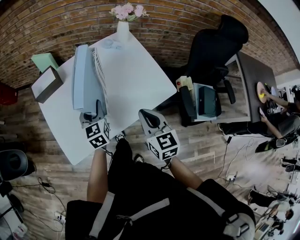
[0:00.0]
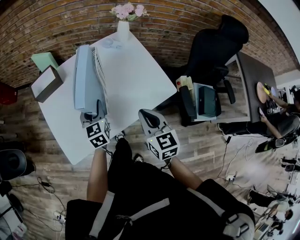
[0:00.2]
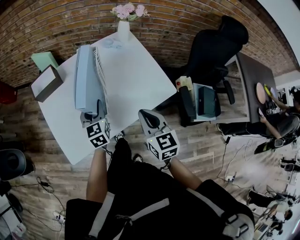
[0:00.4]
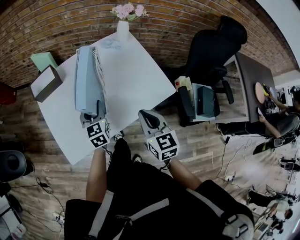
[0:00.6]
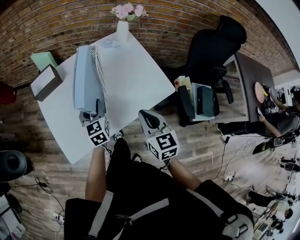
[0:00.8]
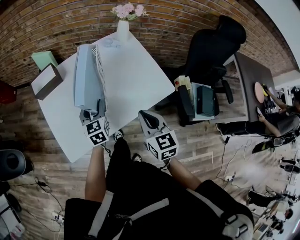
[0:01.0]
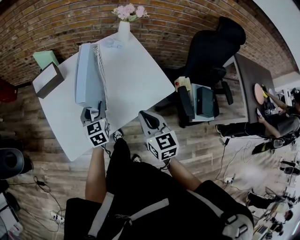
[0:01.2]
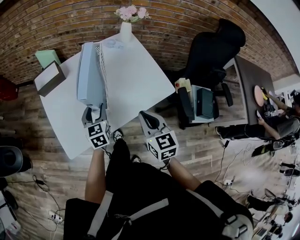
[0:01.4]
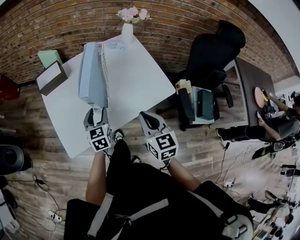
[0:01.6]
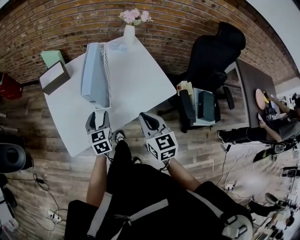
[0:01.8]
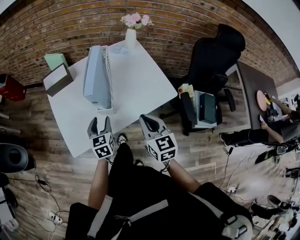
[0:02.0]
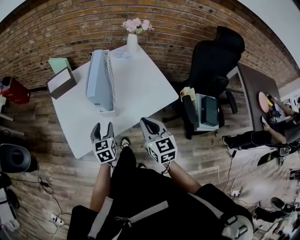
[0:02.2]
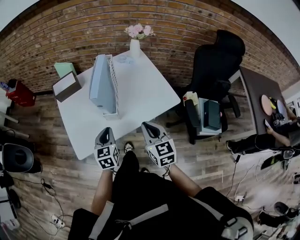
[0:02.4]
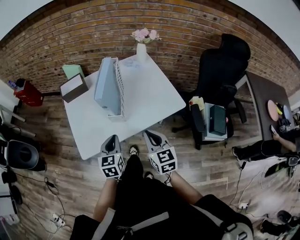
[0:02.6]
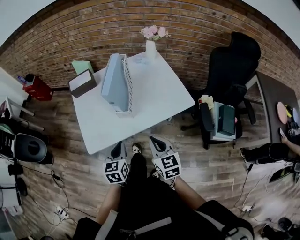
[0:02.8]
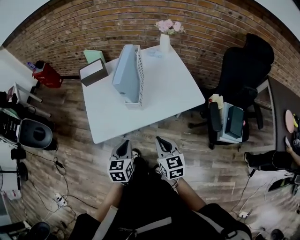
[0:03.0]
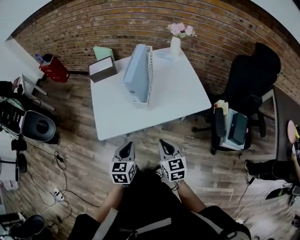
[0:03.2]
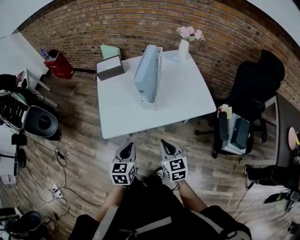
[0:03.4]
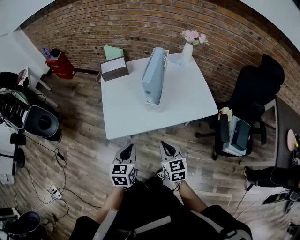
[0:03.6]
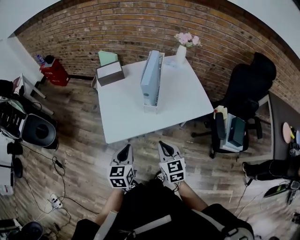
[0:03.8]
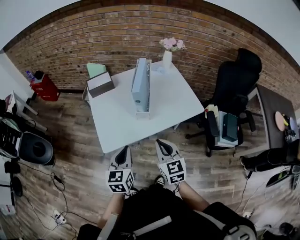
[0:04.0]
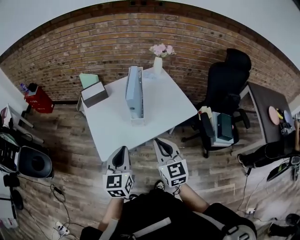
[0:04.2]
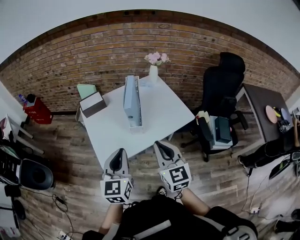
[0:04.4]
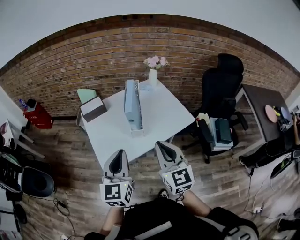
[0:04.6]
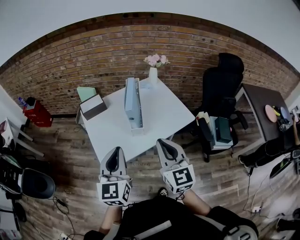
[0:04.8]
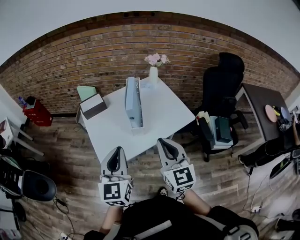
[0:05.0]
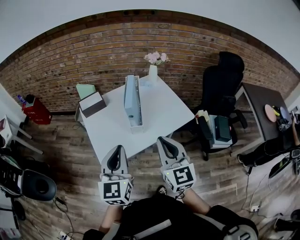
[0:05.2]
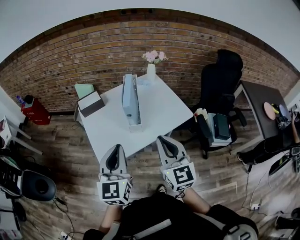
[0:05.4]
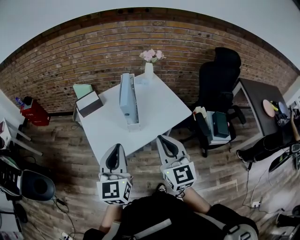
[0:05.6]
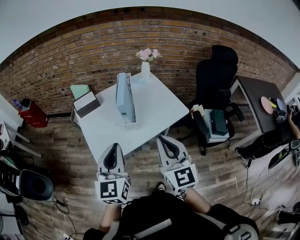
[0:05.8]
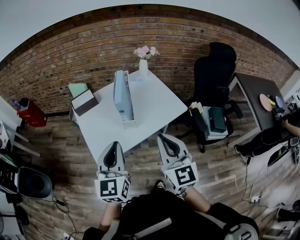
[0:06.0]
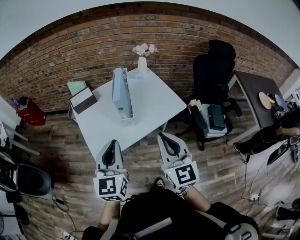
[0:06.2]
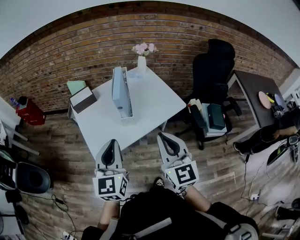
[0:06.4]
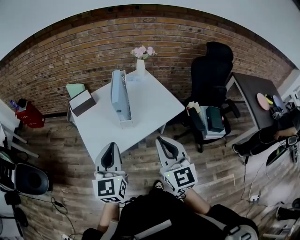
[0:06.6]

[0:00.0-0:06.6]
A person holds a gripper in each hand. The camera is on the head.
0:00.0 to 0:01.6: The left gripper travels backward by roughly 5 cm.
0:01.6 to 0:03.2: The left gripper moves backward, about 25 cm, and closes up. The right gripper heads backward, downward and to the left, covering approximately 15 cm.
0:03.2 to 0:05.0: The two grippers go about 25 cm upward. The left gripper swivels about 30 degrees. Meanwhile the right gripper turns by some 30 degrees.
0:05.0 to 0:06.6: The right gripper ends up roughly 5 cm from where it was.

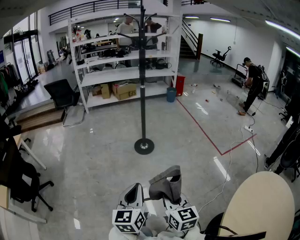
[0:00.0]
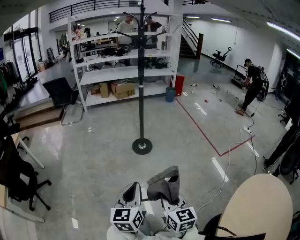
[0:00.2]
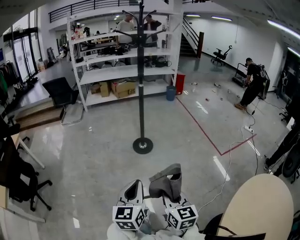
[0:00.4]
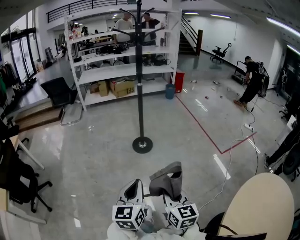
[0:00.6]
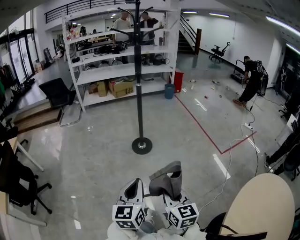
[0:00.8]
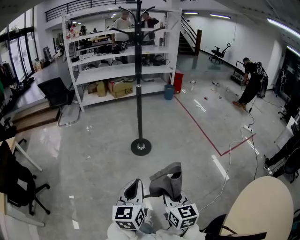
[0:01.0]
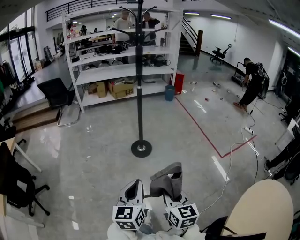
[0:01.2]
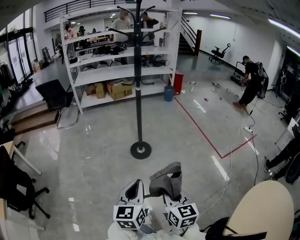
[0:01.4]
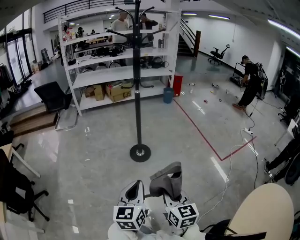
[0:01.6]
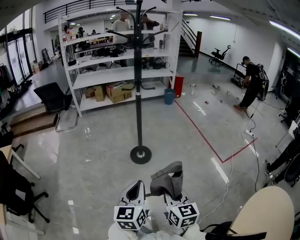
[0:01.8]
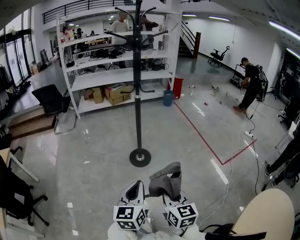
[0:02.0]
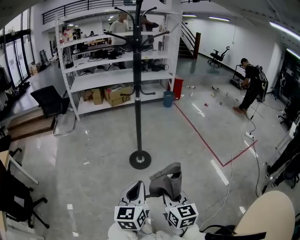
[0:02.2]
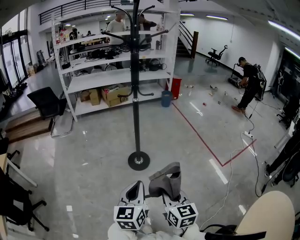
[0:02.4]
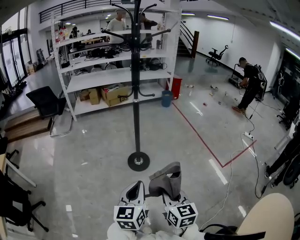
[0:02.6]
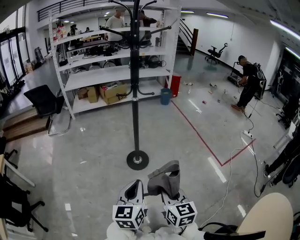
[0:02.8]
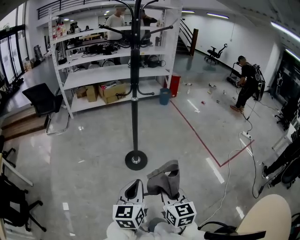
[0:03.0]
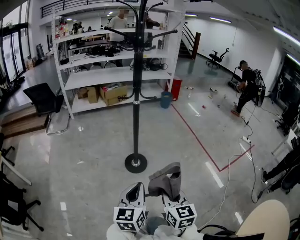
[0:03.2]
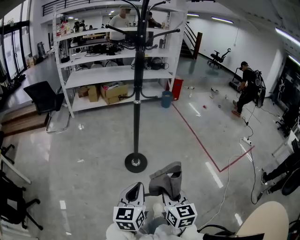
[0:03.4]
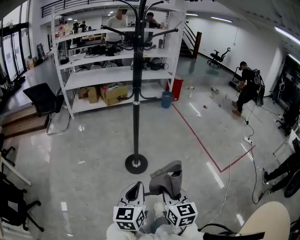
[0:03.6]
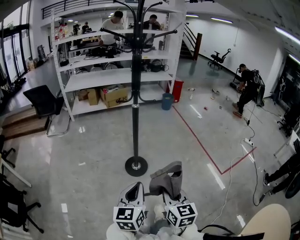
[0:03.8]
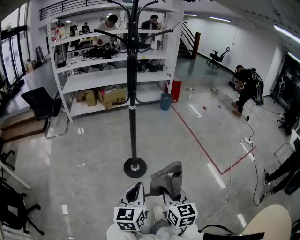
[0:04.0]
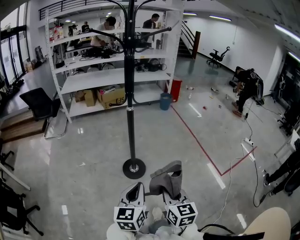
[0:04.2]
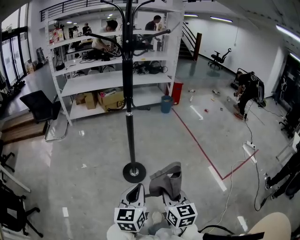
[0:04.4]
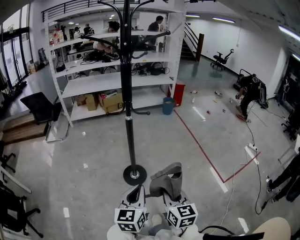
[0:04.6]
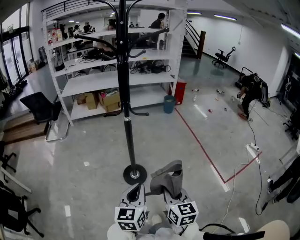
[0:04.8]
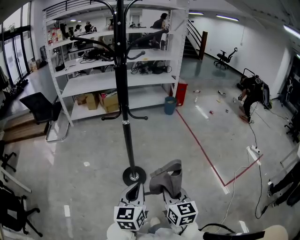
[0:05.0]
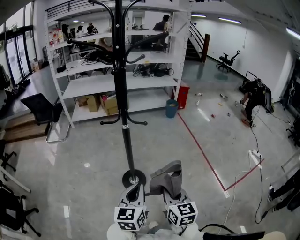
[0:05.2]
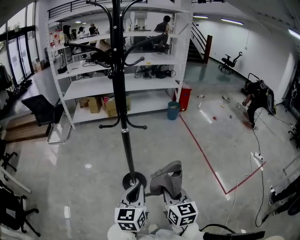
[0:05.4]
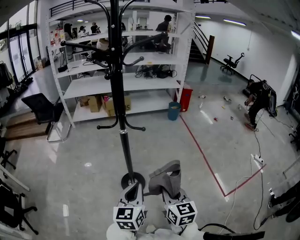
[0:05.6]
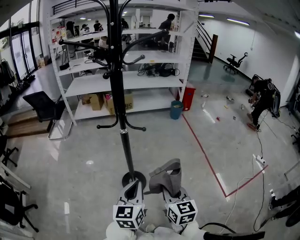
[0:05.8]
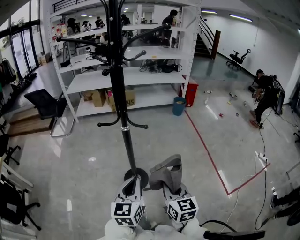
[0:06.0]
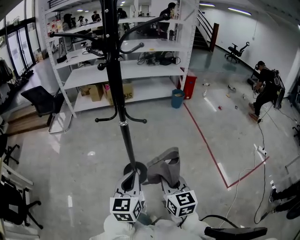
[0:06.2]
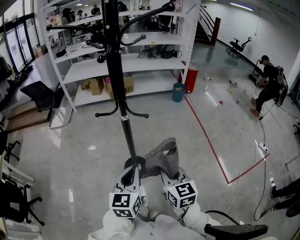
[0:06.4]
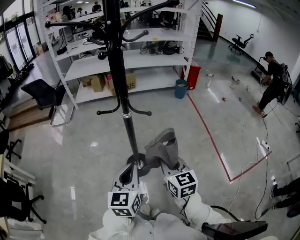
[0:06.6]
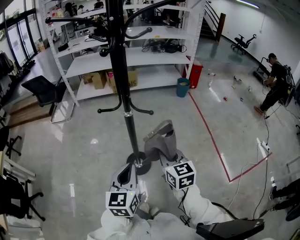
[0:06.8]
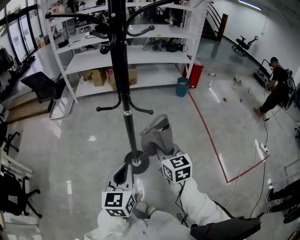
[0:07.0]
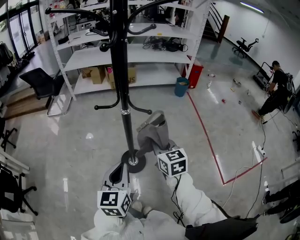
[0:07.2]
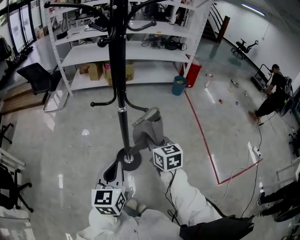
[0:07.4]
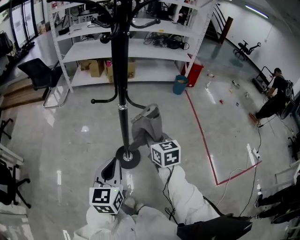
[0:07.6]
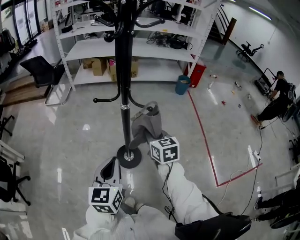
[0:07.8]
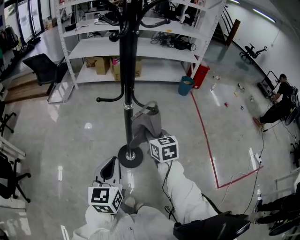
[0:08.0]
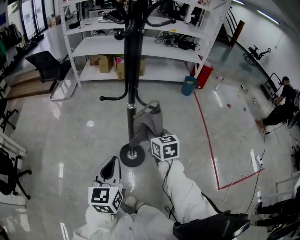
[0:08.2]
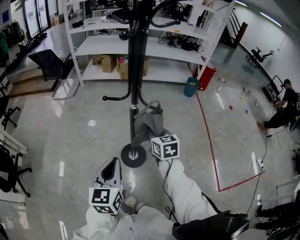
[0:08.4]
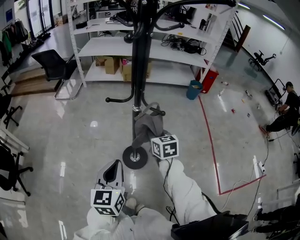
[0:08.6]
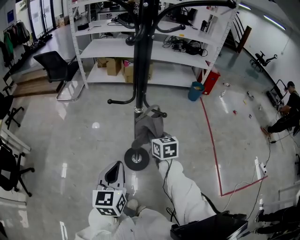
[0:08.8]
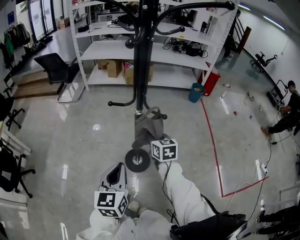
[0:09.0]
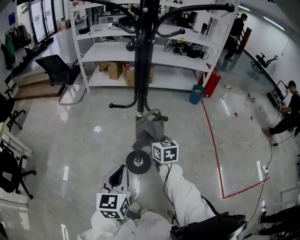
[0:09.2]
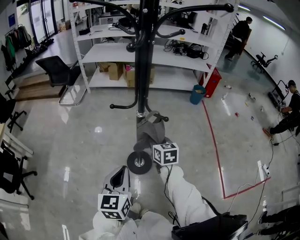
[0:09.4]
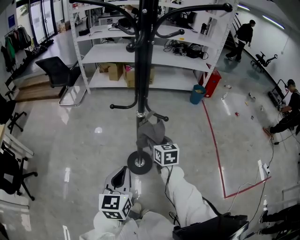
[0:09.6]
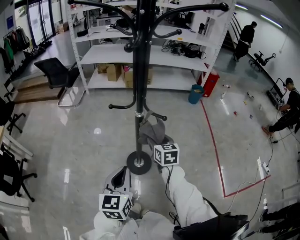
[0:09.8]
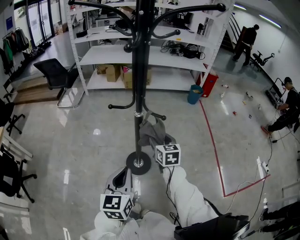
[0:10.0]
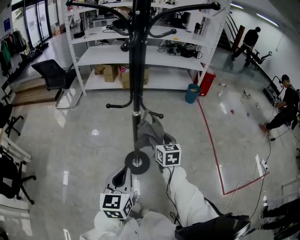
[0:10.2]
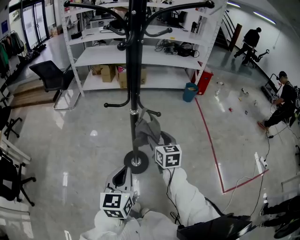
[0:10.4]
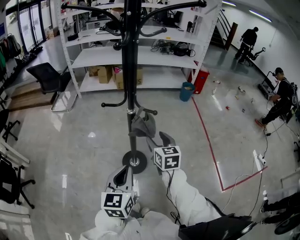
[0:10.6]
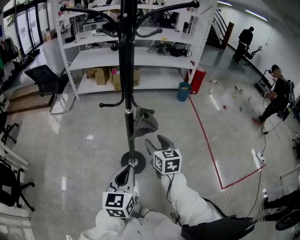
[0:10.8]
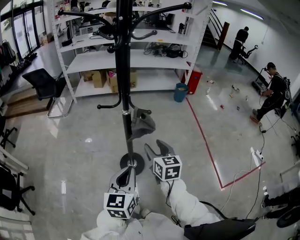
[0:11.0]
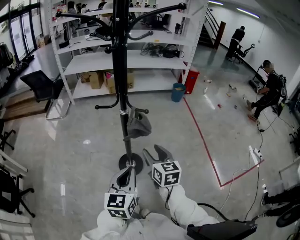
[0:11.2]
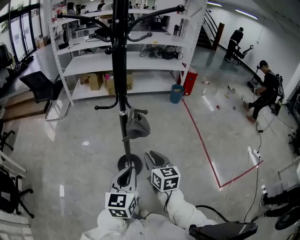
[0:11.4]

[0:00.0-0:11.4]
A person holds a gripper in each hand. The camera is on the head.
0:00.0 to 0:01.4: Both grippers travel together forward, approximately 10 cm.
0:01.4 to 0:02.8: The grippers both shift forward by some 15 cm.
0:02.8 to 0:04.2: Both grippers travel together forward, approximately 10 cm.
0:04.2 to 0:05.6: Both grippers move forward, about 15 cm.
0:05.6 to 0:07.2: The left gripper travels to the left and forward by some 10 cm, while the right gripper shifts approximately 20 cm forward.
0:07.2 to 0:08.6: The right gripper heads forward and downward, covering about 10 cm.
0:08.6 to 0:10.0: The right gripper opens its fingers.
0:10.0 to 0:11.4: The right gripper goes roughly 15 cm backward, and closes, while the left gripper is displaced to the right by some 5 cm.

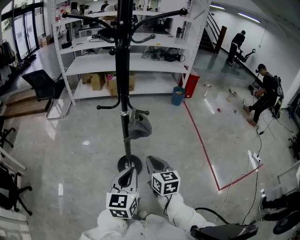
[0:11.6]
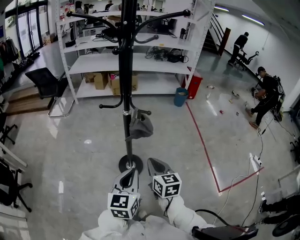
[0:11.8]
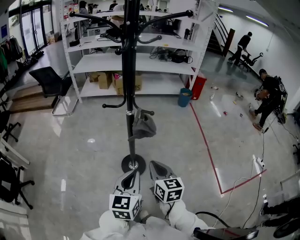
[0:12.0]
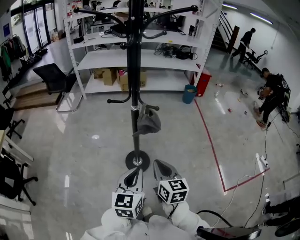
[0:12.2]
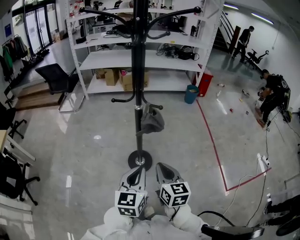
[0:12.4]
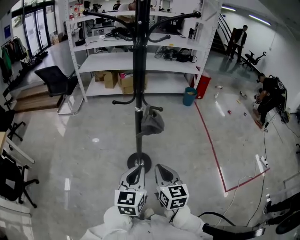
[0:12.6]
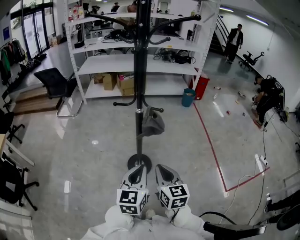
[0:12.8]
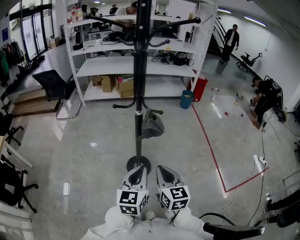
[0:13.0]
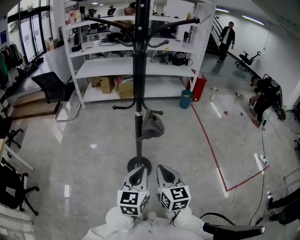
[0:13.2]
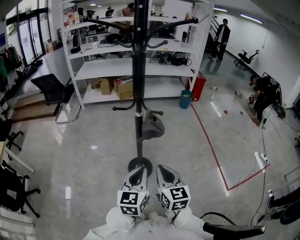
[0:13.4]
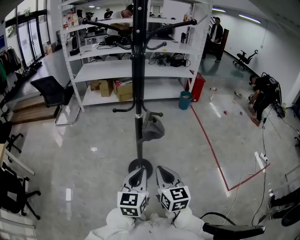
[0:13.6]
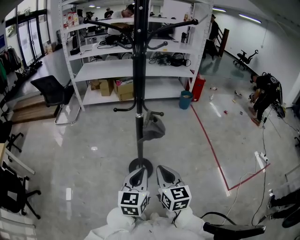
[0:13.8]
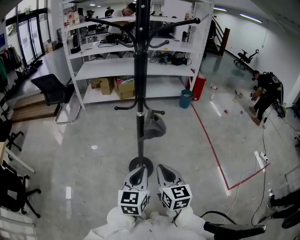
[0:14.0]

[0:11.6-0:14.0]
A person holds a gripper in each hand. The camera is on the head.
0:11.6 to 0:12.8: The right gripper shifts some 5 cm backward.
0:12.8 to 0:14.0: The grippers stay close to where they were, moving slightly.

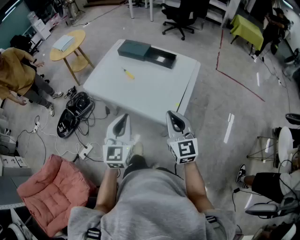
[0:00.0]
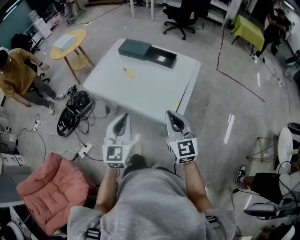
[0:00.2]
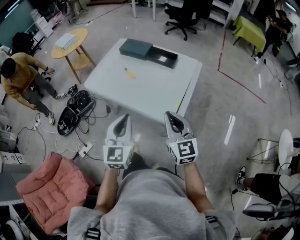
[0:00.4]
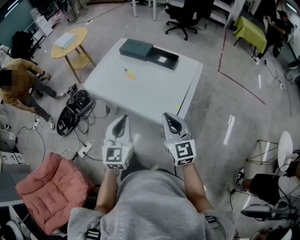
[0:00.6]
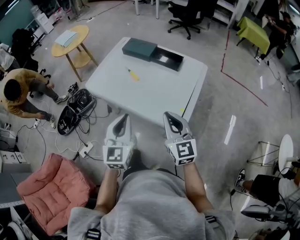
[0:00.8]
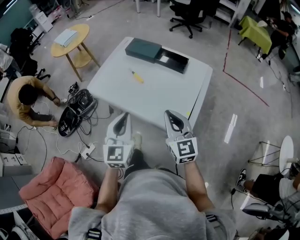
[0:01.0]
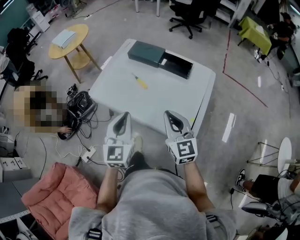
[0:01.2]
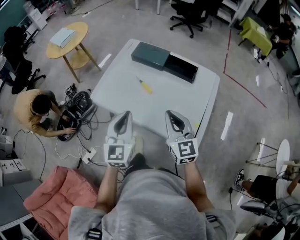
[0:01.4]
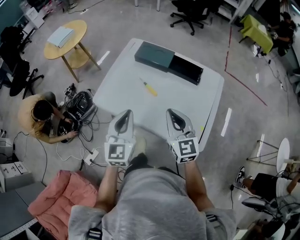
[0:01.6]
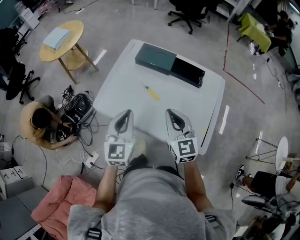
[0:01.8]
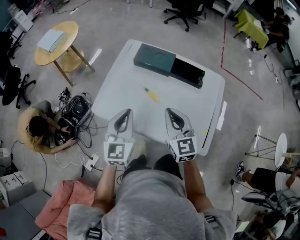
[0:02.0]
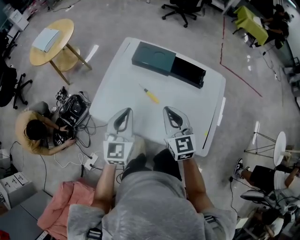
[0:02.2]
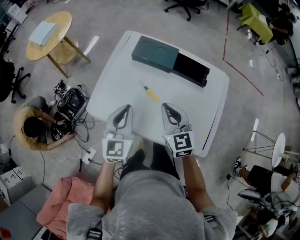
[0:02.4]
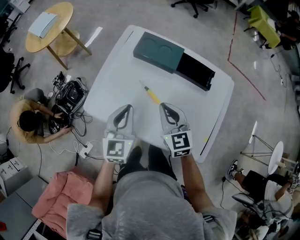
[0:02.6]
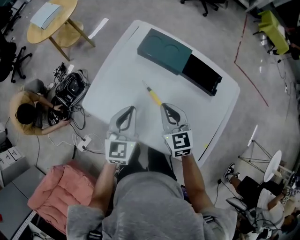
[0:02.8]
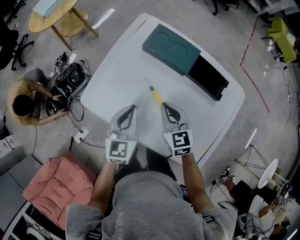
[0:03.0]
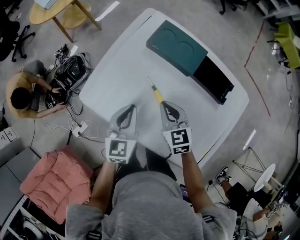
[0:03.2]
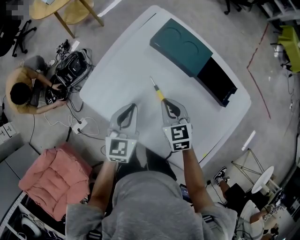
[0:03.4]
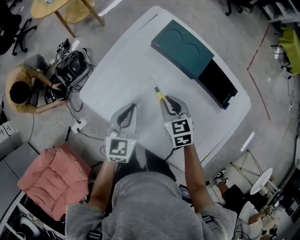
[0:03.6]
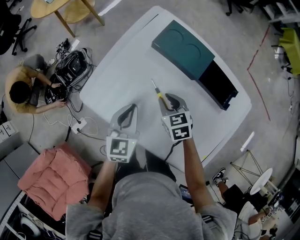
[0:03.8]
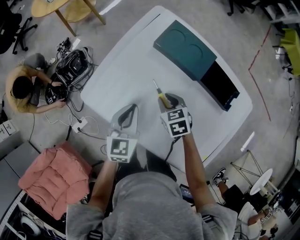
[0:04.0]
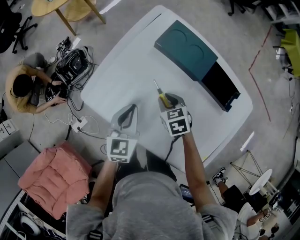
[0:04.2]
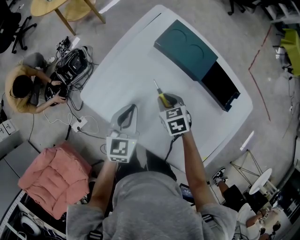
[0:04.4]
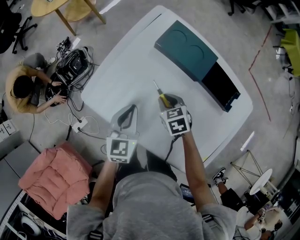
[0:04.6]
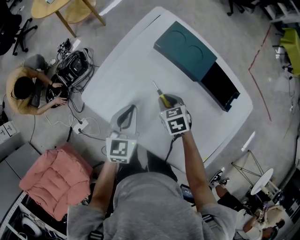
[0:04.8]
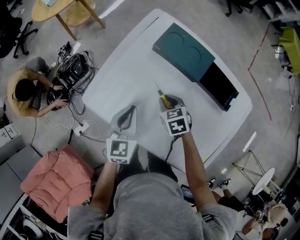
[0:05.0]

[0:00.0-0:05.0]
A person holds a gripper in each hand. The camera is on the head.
0:00.0 to 0:01.6: The grippers both shift forward and to the left by about 30 cm.
0:01.6 to 0:03.4: The two grippers go roughly 30 cm downward and forward. The left gripper changes its angle by approximately 20 degrees; the right gripper turns by about 30 degrees.
0:03.4 to 0:05.0: The right gripper heads downward, covering about 5 cm.
